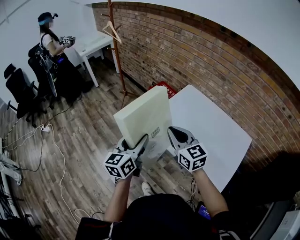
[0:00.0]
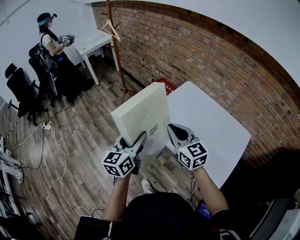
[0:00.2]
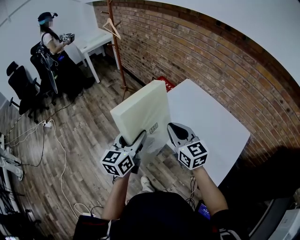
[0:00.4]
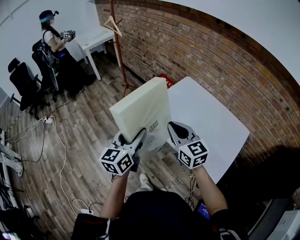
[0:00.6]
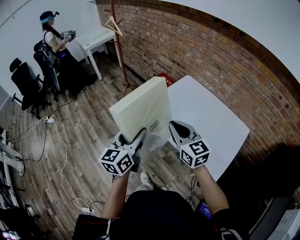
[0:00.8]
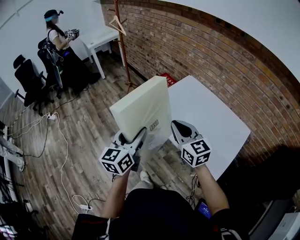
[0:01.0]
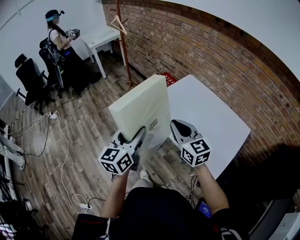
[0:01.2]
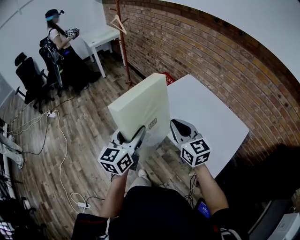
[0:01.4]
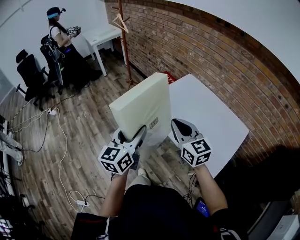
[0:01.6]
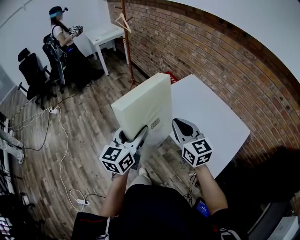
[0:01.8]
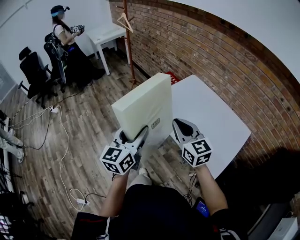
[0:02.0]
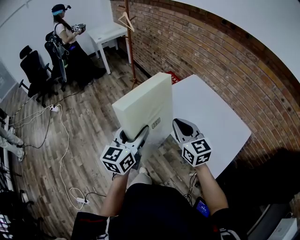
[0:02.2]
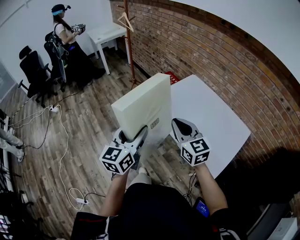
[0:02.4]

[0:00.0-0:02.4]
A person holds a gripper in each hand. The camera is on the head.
0:00.0 to 0:01.2: The two grippers go roughly 10 cm backward.
0:01.2 to 0:02.4: The grippers stay close to where they were, moving slightly.

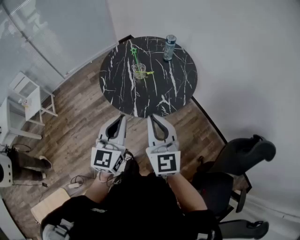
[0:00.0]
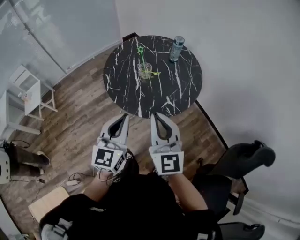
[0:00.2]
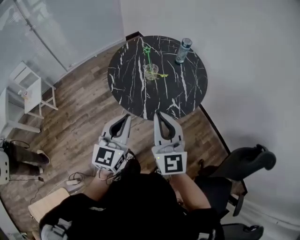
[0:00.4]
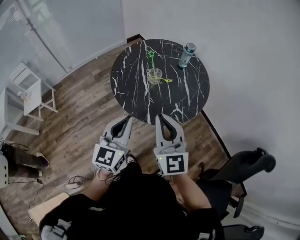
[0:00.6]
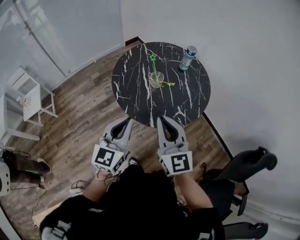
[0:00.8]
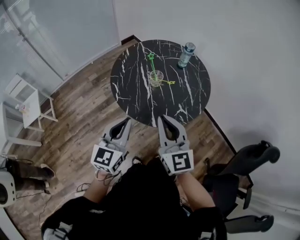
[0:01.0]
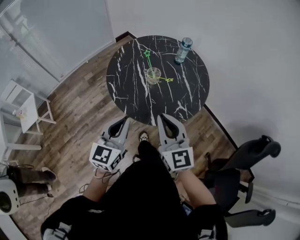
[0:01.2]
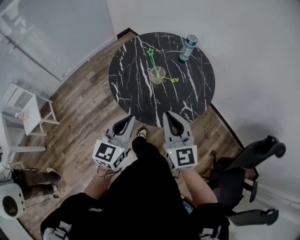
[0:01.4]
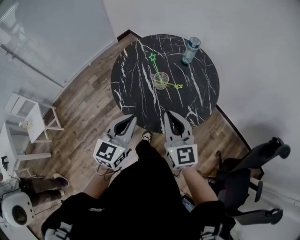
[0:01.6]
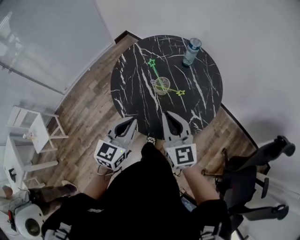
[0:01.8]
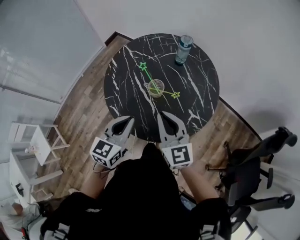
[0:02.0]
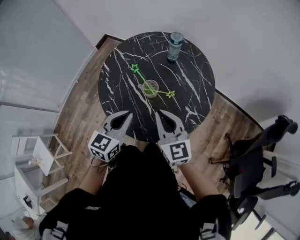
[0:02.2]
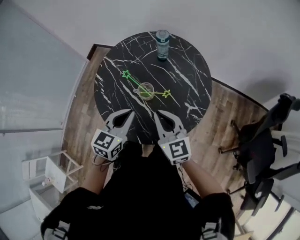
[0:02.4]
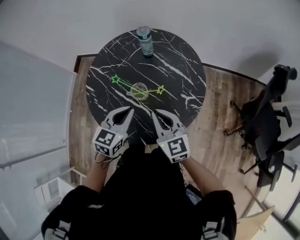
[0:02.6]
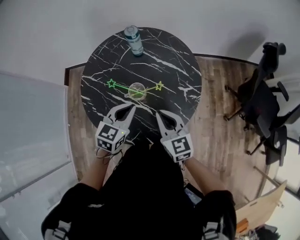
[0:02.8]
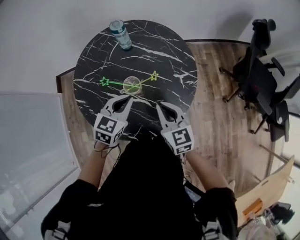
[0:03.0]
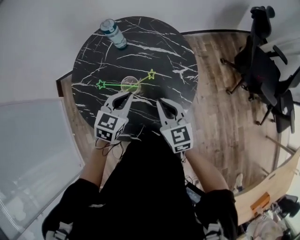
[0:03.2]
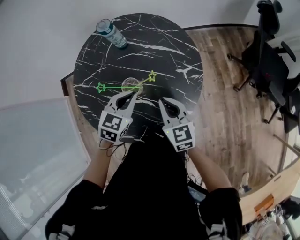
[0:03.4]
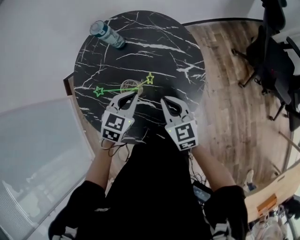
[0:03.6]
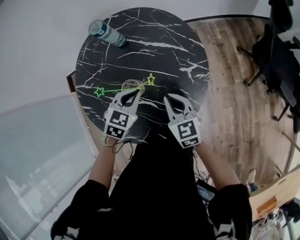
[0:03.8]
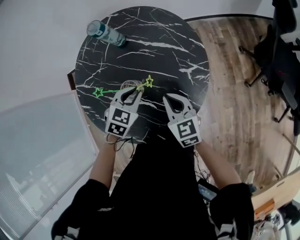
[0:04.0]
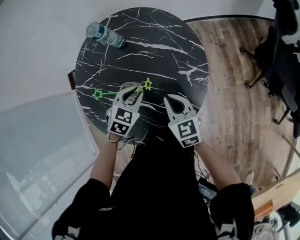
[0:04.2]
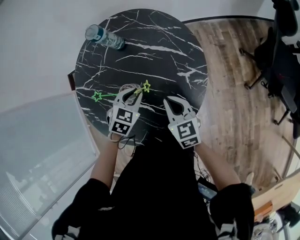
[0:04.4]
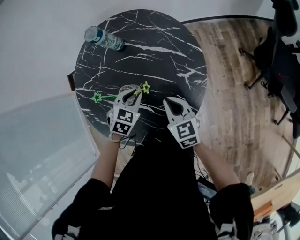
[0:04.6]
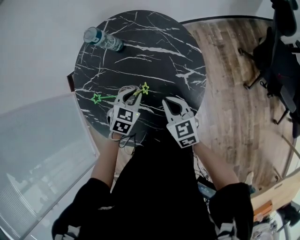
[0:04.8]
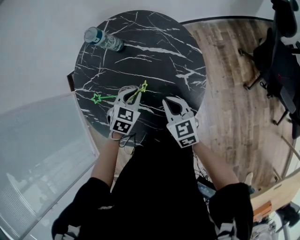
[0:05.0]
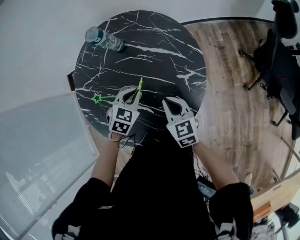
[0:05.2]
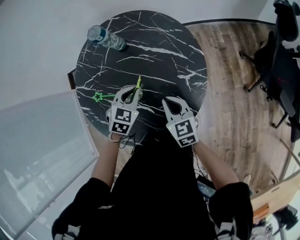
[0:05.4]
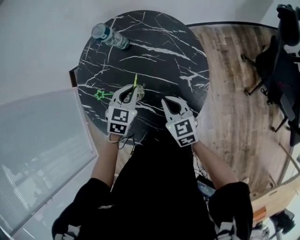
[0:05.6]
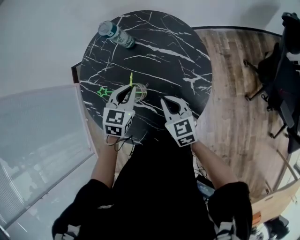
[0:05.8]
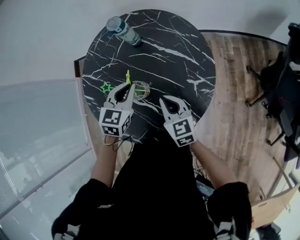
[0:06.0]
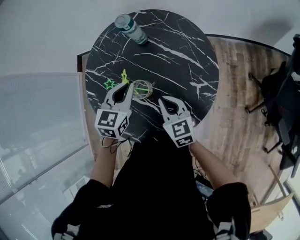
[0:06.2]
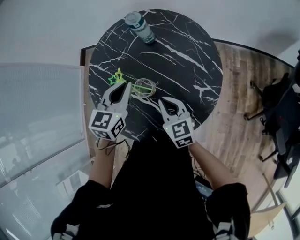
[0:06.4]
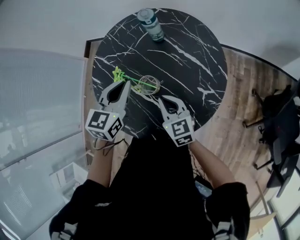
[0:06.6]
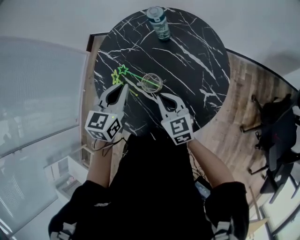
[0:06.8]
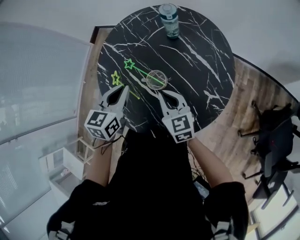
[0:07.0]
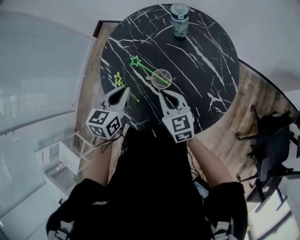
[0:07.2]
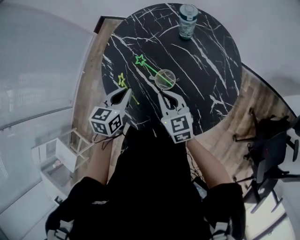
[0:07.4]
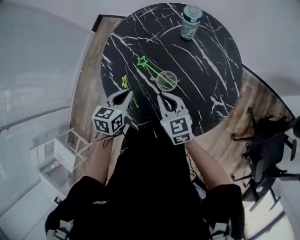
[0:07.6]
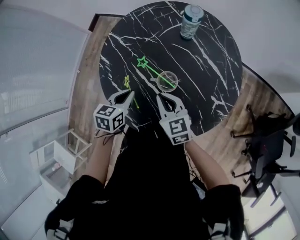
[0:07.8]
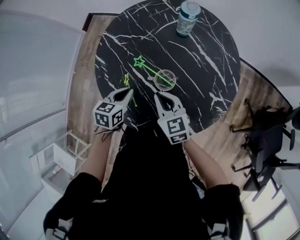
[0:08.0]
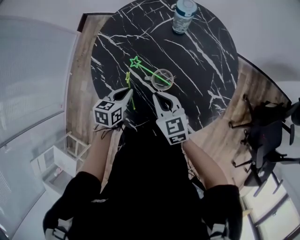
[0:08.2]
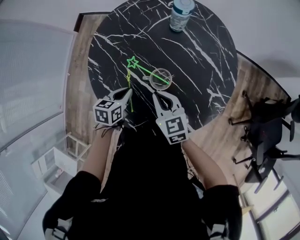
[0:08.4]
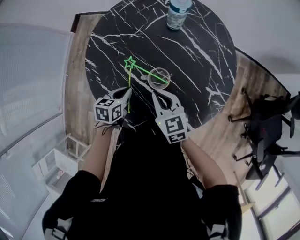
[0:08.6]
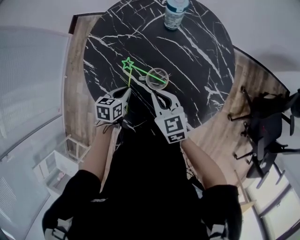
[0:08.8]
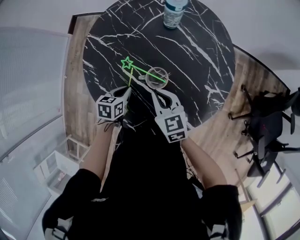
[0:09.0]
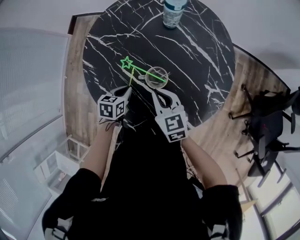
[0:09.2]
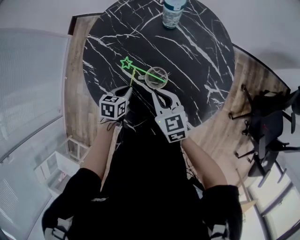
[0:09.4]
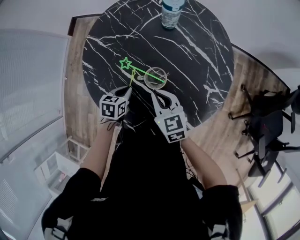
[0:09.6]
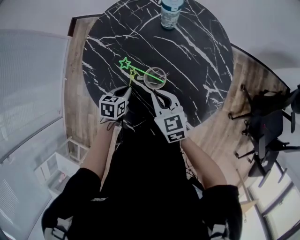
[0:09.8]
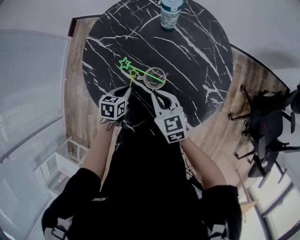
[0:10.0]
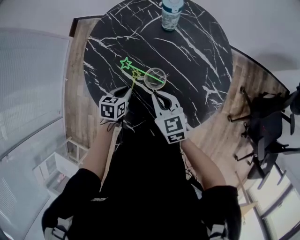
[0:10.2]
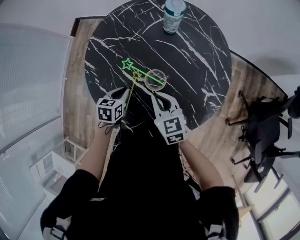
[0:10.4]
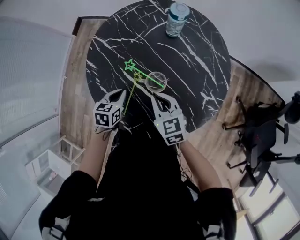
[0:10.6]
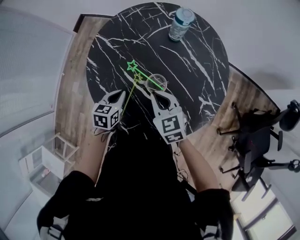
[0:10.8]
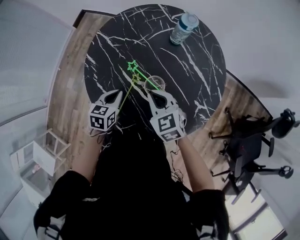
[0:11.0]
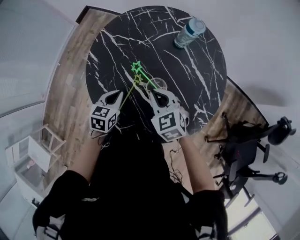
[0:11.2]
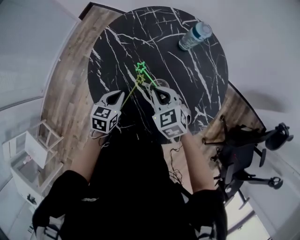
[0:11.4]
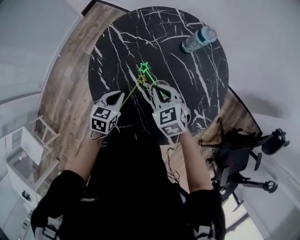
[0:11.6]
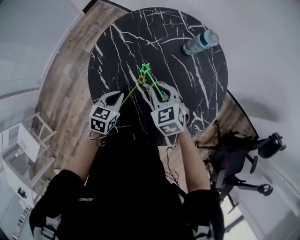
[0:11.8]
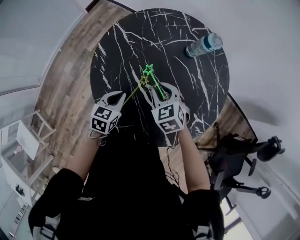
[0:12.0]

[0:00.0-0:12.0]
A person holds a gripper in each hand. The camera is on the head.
0:00.0 to 0:01.6: Both grippers travel together forward, to the left and downward, approximately 25 cm. The left gripper turns by some 20 degrees.
0:01.6 to 0:03.0: The right gripper goes about 10 cm downward, and rotates about 50 degrees, while the left gripper ends up some 25 cm from where it was, and rotates roughly 60 degrees.
0:03.0 to 0:04.4: The grippers both shift downward and forward by approximately 15 cm. The left gripper rotates roughly 20 degrees.
0:04.4 to 0:06.0: The left gripper goes approximately 10 cm upward, and changes its angle by about 30 degrees; the right gripper shifts by roughly 5 cm.
0:06.0 to 0:07.6: Both grippers travel together to the left, approximately 15 cm. The right gripper rotates about 20 degrees. Meanwhile the left gripper rotates about 40 degrees.
0:07.6 to 0:09.0: The left gripper travels downward by roughly 15 cm.
0:09.0 to 0:10.4: The grippers move only a little.
0:10.4 to 0:12.0: The left gripper changes place by some 5 cm. The right gripper shifts approximately 5 cm forward, and turns by roughly 40 degrees.

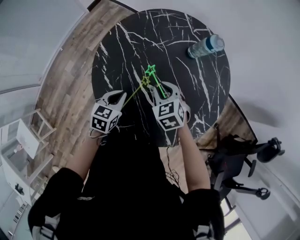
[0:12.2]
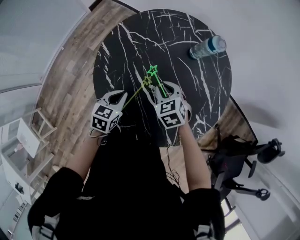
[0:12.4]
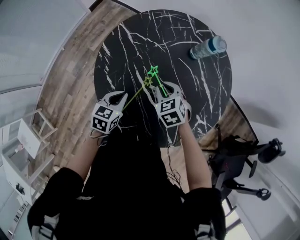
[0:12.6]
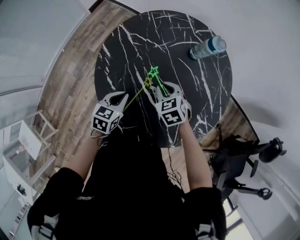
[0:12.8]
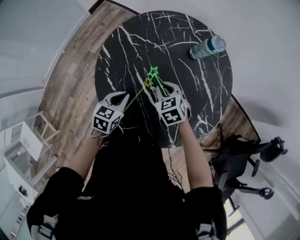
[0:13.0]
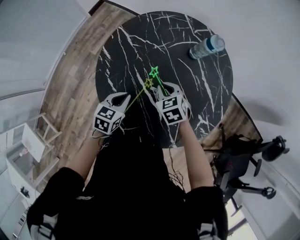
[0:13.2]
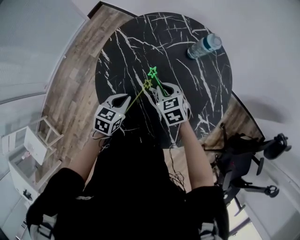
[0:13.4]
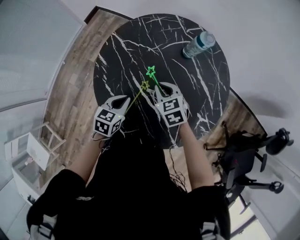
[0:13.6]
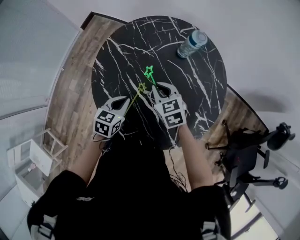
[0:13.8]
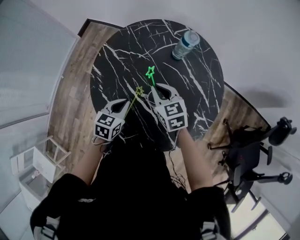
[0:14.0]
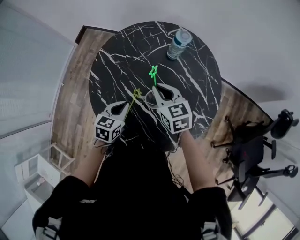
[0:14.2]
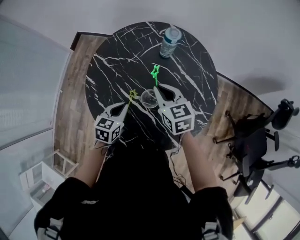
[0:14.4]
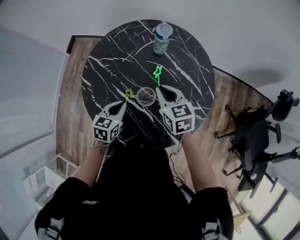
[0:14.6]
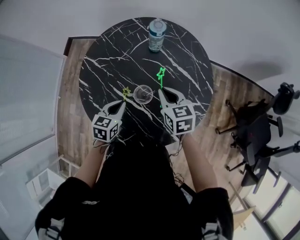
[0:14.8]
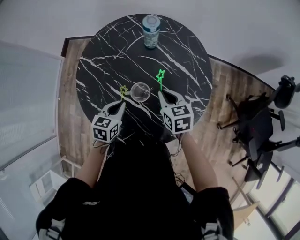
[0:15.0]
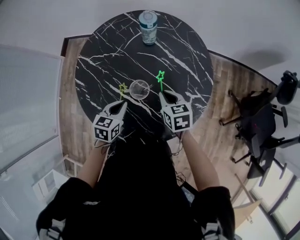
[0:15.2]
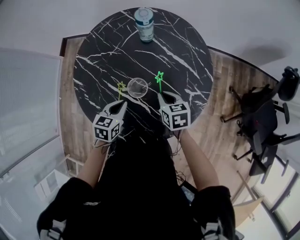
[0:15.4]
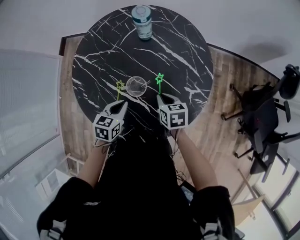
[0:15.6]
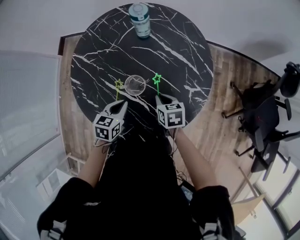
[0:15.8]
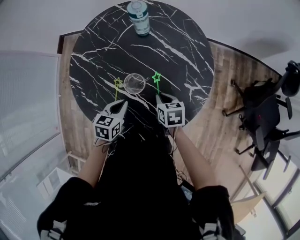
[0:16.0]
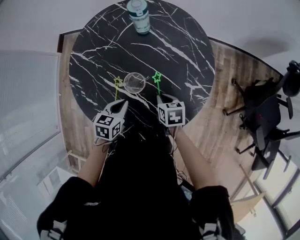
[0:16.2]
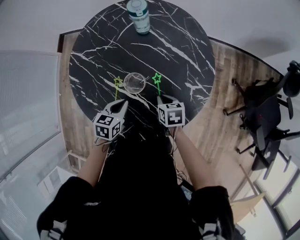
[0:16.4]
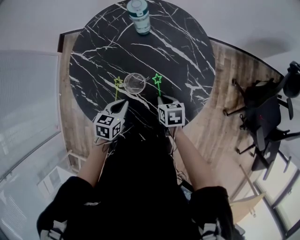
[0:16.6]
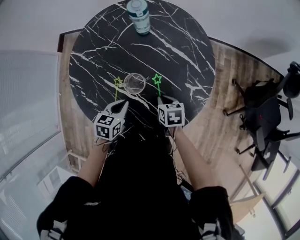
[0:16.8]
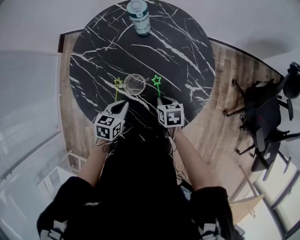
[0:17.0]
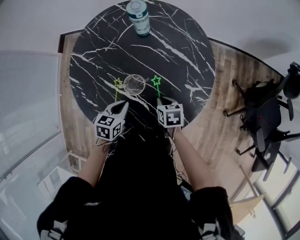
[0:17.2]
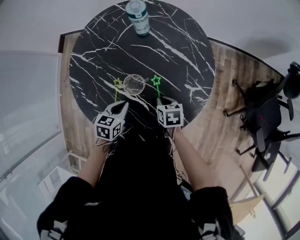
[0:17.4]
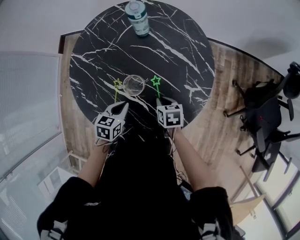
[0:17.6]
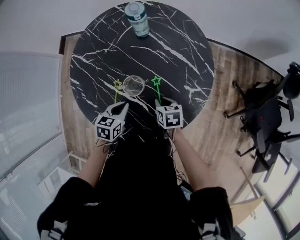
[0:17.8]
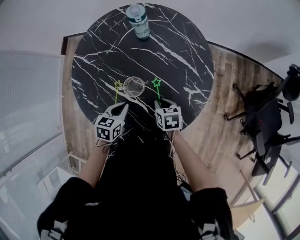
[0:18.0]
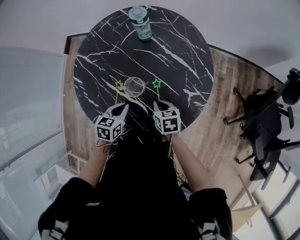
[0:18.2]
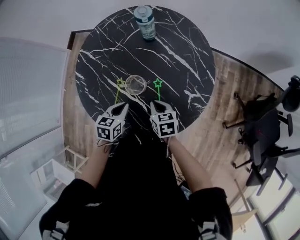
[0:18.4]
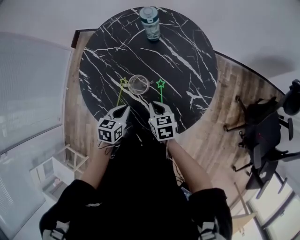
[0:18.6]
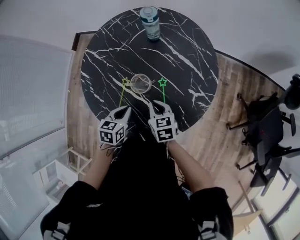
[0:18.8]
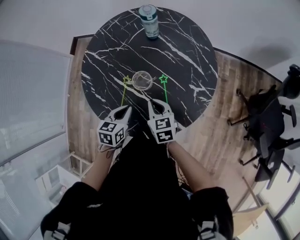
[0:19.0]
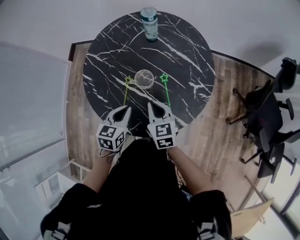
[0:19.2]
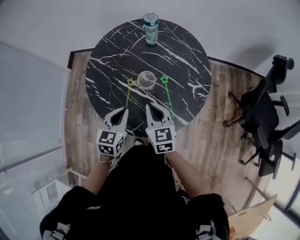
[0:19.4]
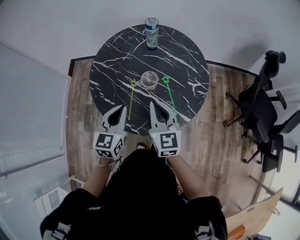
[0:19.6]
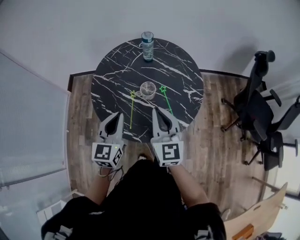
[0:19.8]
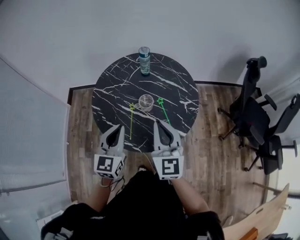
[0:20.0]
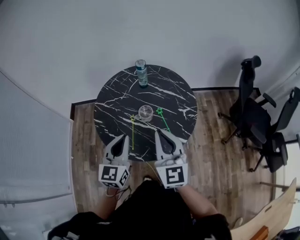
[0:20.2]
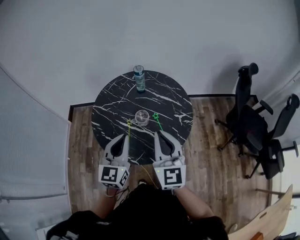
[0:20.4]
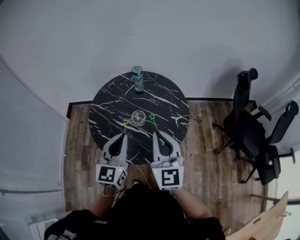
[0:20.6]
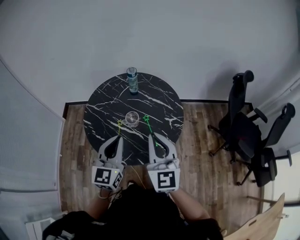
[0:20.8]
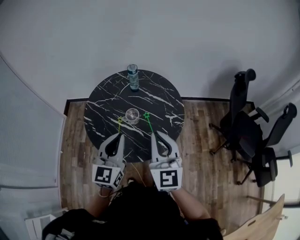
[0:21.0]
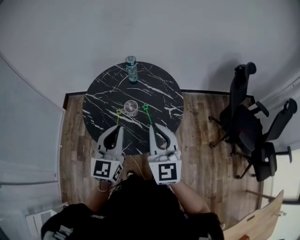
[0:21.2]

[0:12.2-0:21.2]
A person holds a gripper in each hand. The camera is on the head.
0:12.2 to 0:13.8: There are only small adjustments of the grippers.
0:13.8 to 0:15.2: The left gripper moves to the right, approximately 5 cm, while the right gripper goes some 15 cm to the right, and changes its angle by about 30 degrees.
0:15.2 to 0:16.6: The right gripper moves downward and backward, about 10 cm. The left gripper changes place by about 5 cm.
0:16.6 to 0:18.2: The grippers move only a little.
0:18.2 to 0:19.8: The right gripper moves upward, some 30 cm, and points its fingers about 50 degrees further upward, while the left gripper is displaced upward and backward by about 25 cm, and tilts its fingers approximately 40 degrees upward.
0:19.8 to 0:21.2: The two grippers go about 15 cm upward and to the right.
